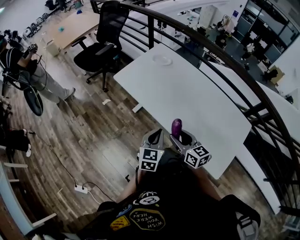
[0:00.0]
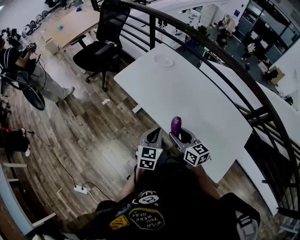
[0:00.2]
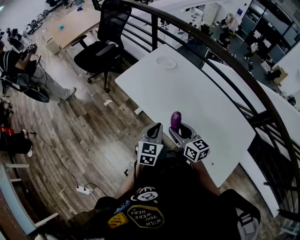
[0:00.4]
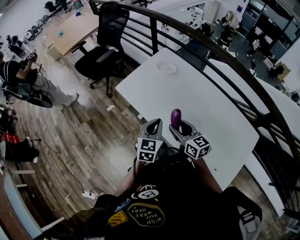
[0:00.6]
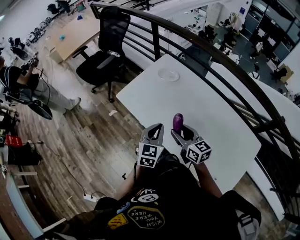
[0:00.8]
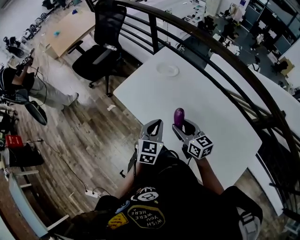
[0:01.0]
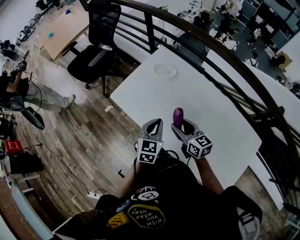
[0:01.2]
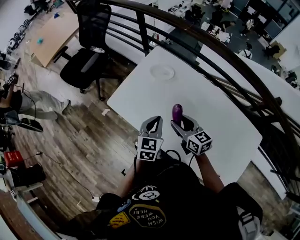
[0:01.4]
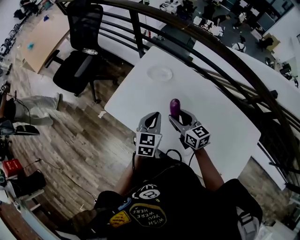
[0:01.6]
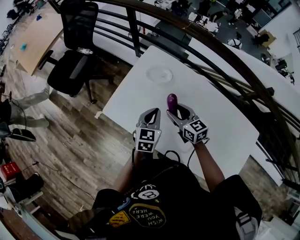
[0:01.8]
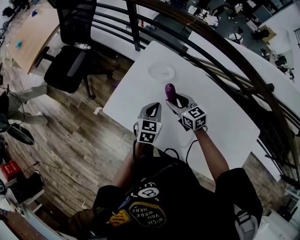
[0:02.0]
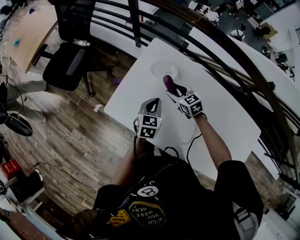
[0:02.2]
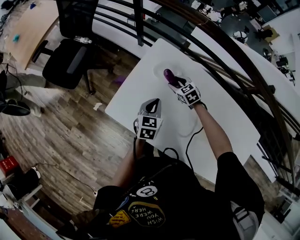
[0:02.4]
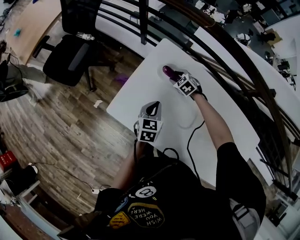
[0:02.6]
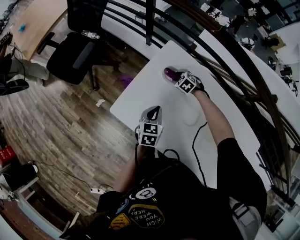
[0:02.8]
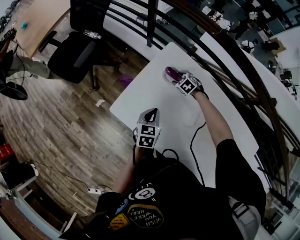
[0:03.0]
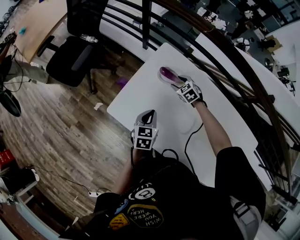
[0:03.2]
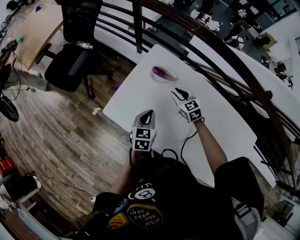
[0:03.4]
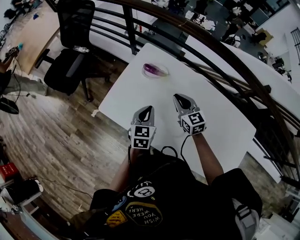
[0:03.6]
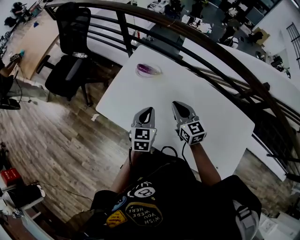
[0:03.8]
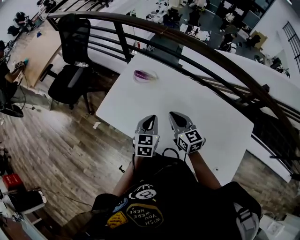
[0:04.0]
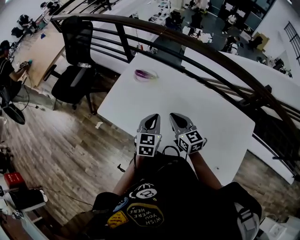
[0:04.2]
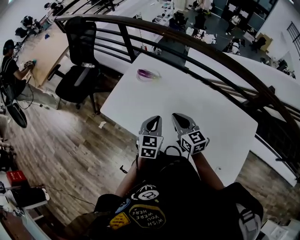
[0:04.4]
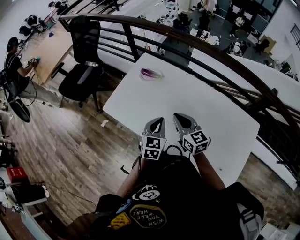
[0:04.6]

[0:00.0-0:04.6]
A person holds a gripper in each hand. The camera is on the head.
0:00.0 to 0:01.6: The grippers both shift forward by roughly 40 cm.
0:01.6 to 0:03.0: The left gripper goes roughly 15 cm downward, forward and to the left. The right gripper heads forward and downward, covering about 35 cm, and tilts its fingers approximately 40 degrees downward.
0:03.0 to 0:04.6: The right gripper travels backward and upward by some 50 cm, angles its fingers upward, by roughly 50 degrees, and closes its fingers. Meanwhile the left gripper is displaced backward, to the right and upward by some 30 cm, and turns by some 20 degrees.

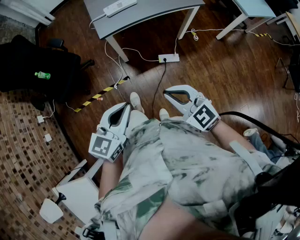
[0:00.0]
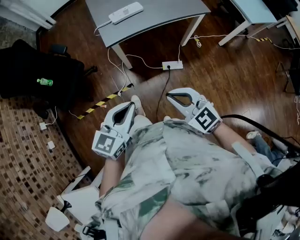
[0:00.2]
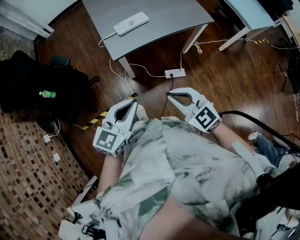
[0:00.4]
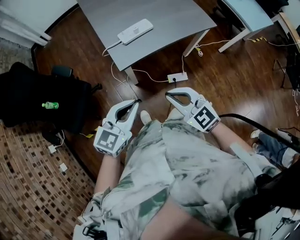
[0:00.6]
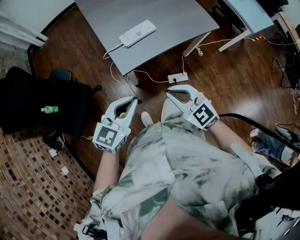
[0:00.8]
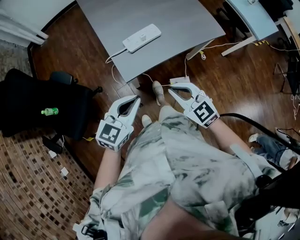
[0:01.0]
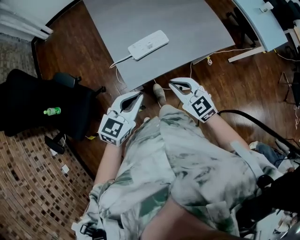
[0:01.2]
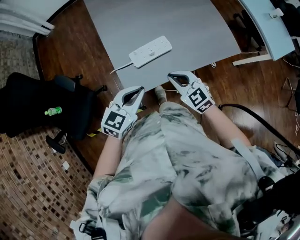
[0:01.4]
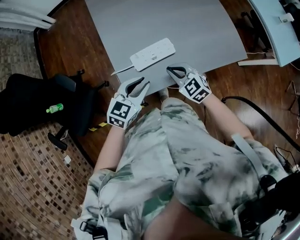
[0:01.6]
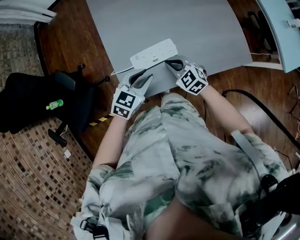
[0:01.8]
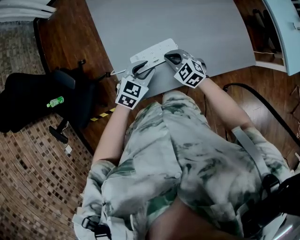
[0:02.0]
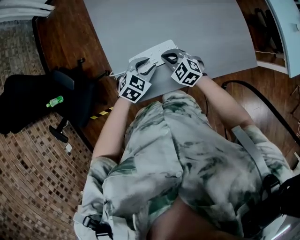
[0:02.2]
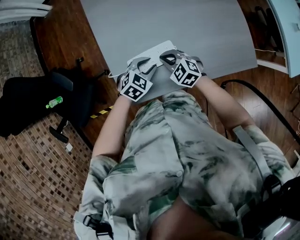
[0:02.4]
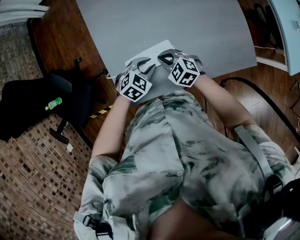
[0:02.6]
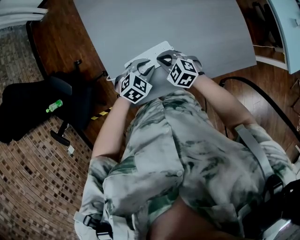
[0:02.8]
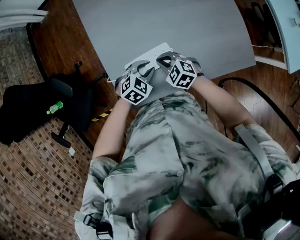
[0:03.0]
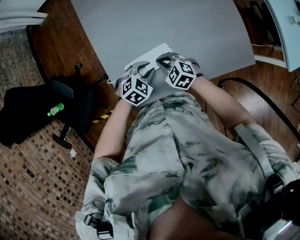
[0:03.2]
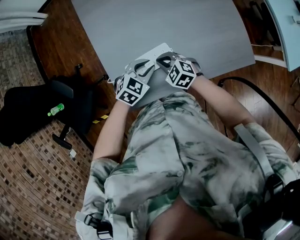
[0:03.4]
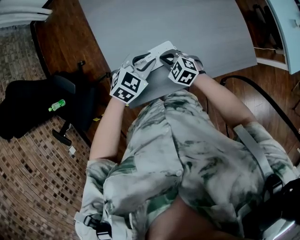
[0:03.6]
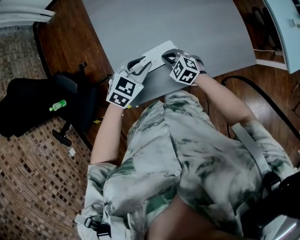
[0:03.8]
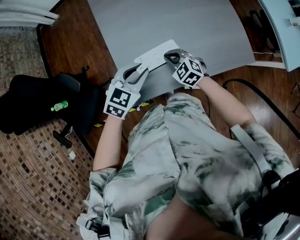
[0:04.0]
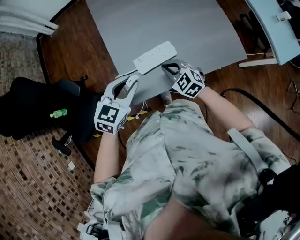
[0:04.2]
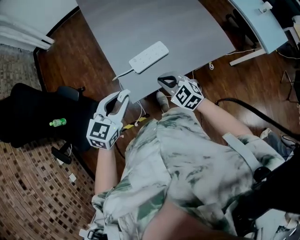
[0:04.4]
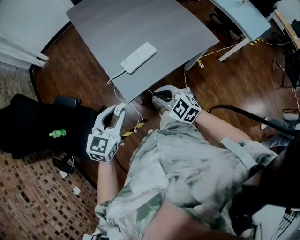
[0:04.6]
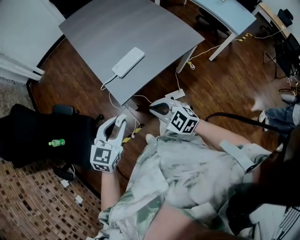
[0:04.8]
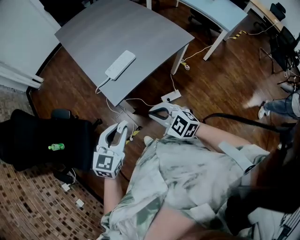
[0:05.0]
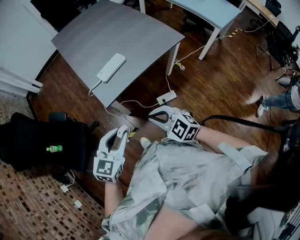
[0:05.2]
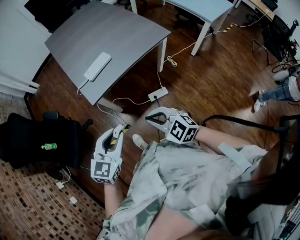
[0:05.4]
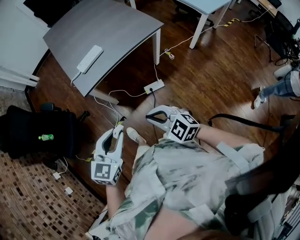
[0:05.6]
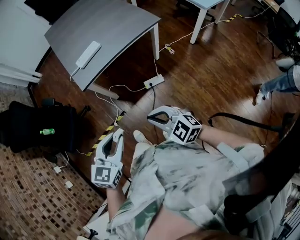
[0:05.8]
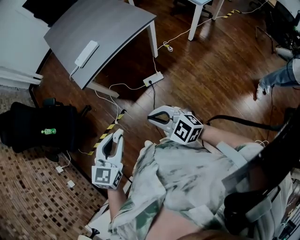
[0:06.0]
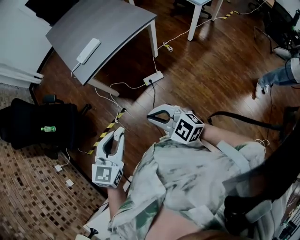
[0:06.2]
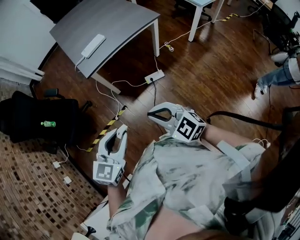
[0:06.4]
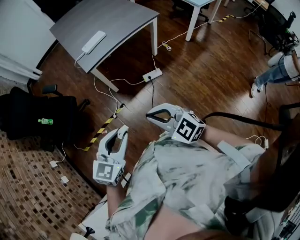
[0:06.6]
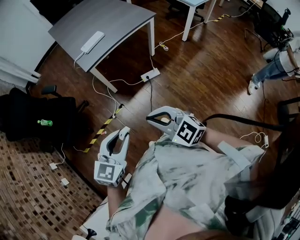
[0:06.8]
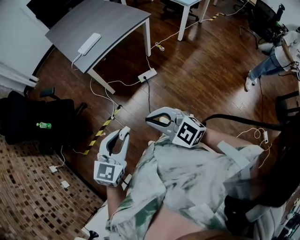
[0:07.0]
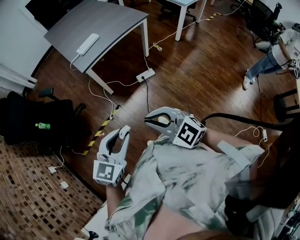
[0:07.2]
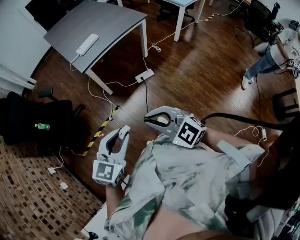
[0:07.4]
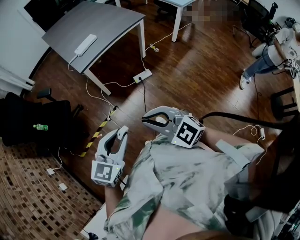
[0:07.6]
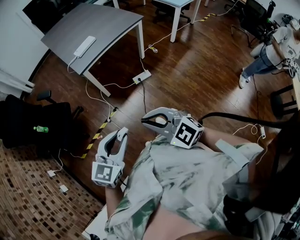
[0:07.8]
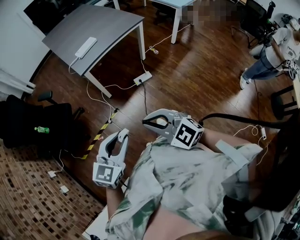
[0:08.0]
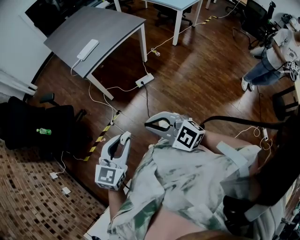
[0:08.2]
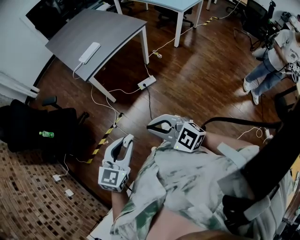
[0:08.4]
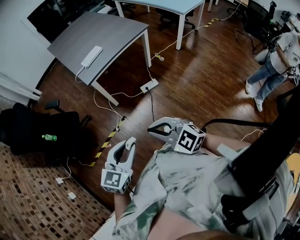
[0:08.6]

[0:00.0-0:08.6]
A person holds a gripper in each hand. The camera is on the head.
0:00.0 to 0:01.4: The pair of grippers is taken forward, about 40 cm.
0:01.4 to 0:02.8: Both grippers move downward and forward, approximately 20 cm. The left gripper changes its angle by approximately 30 degrees, and opens its fingers, while the right gripper rotates roughly 30 degrees.
0:02.8 to 0:04.4: The right gripper heads backward and upward, covering roughly 20 cm. Meanwhile the left gripper heads upward, to the left and backward, covering roughly 30 cm, and turns by some 30 degrees.
0:04.4 to 0:05.8: The two grippers travel together, backward and to the right, roughly 40 cm.
0:05.8 to 0:07.2: The right gripper moves backward, to the left and upward, roughly 20 cm; the left gripper goes approximately 20 cm backward and to the left.
0:07.2 to 0:08.6: The grippers make only small movements.

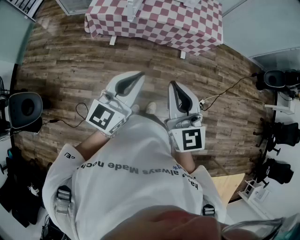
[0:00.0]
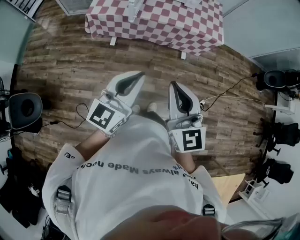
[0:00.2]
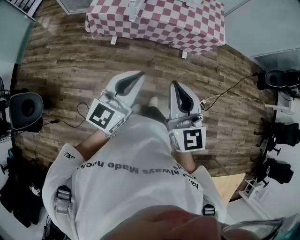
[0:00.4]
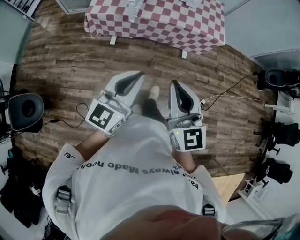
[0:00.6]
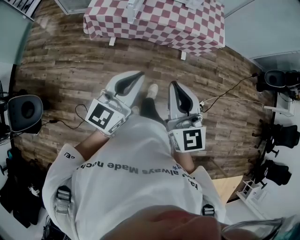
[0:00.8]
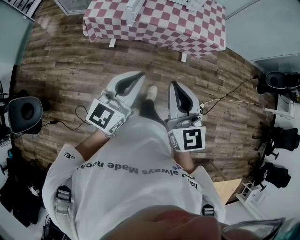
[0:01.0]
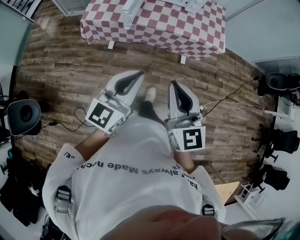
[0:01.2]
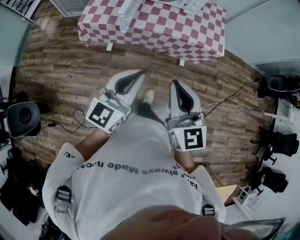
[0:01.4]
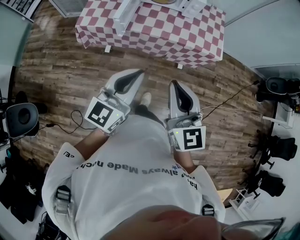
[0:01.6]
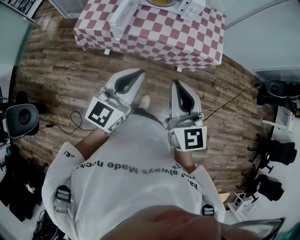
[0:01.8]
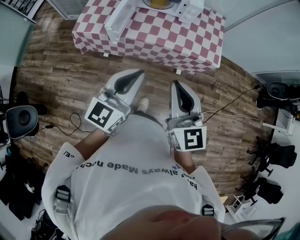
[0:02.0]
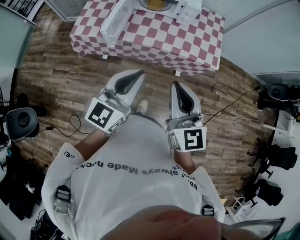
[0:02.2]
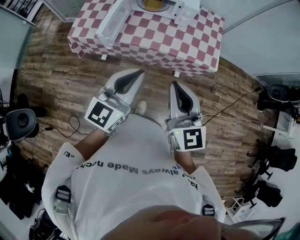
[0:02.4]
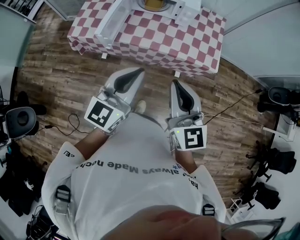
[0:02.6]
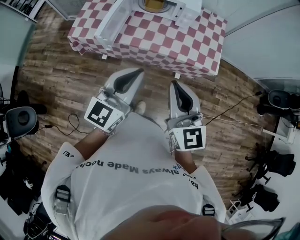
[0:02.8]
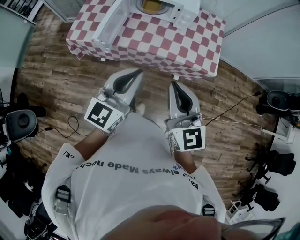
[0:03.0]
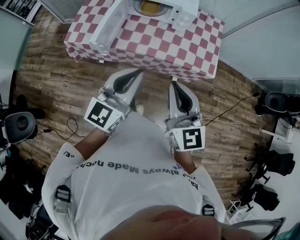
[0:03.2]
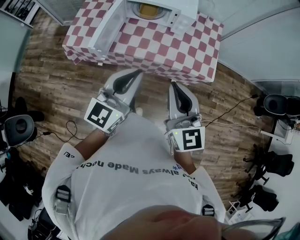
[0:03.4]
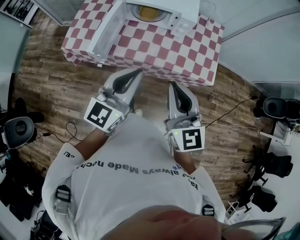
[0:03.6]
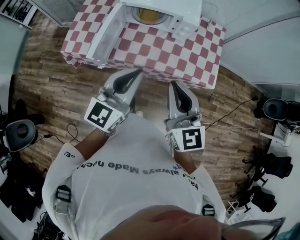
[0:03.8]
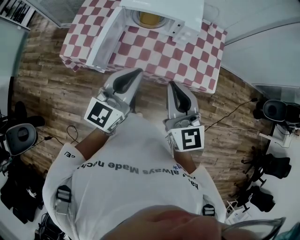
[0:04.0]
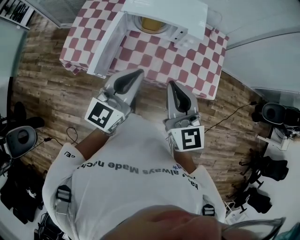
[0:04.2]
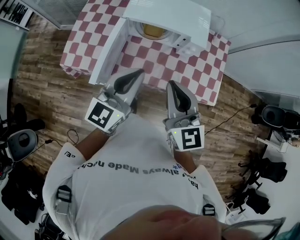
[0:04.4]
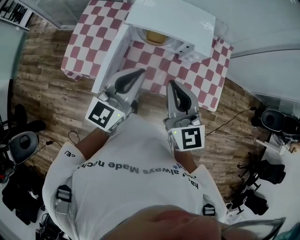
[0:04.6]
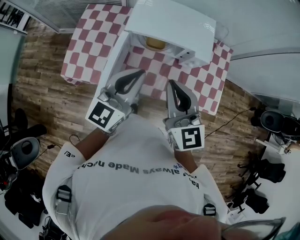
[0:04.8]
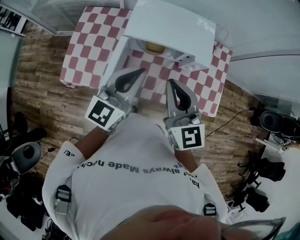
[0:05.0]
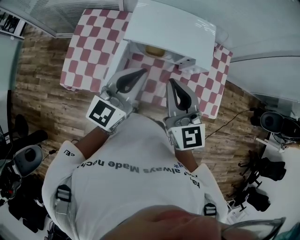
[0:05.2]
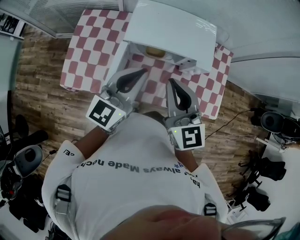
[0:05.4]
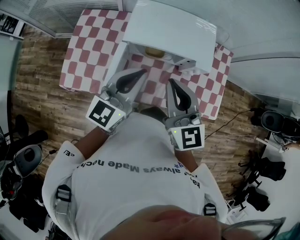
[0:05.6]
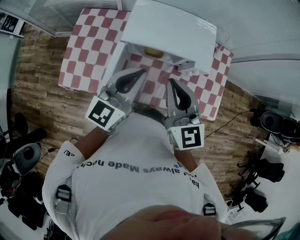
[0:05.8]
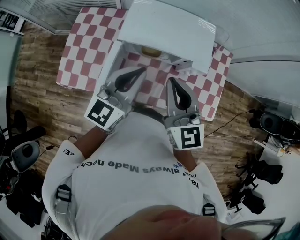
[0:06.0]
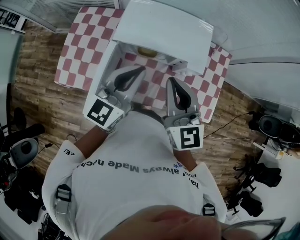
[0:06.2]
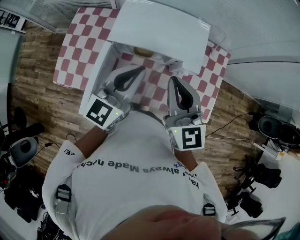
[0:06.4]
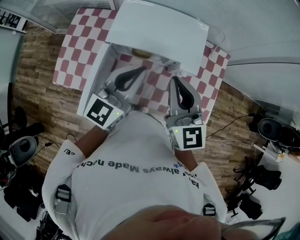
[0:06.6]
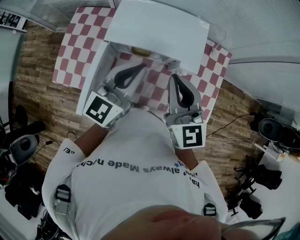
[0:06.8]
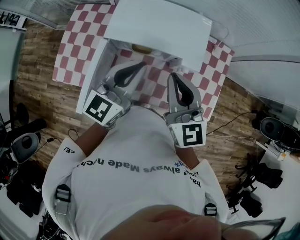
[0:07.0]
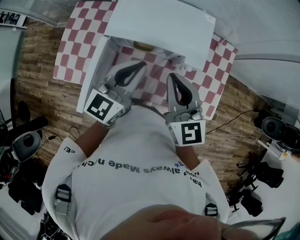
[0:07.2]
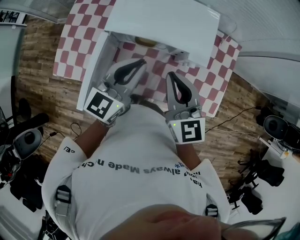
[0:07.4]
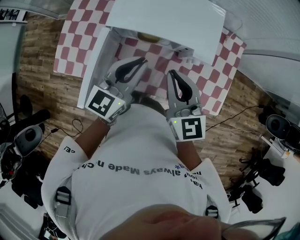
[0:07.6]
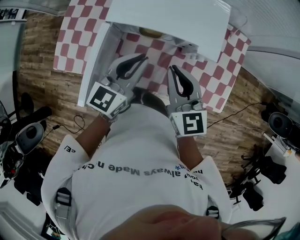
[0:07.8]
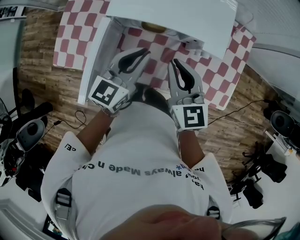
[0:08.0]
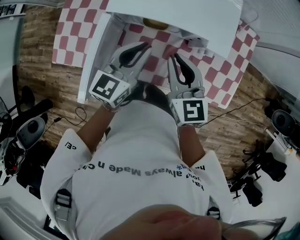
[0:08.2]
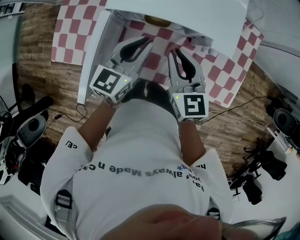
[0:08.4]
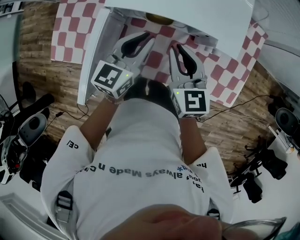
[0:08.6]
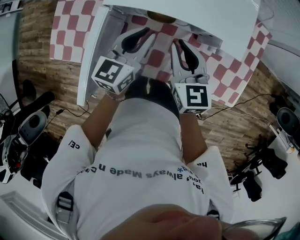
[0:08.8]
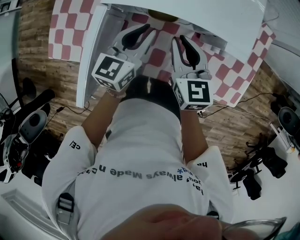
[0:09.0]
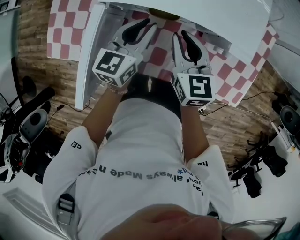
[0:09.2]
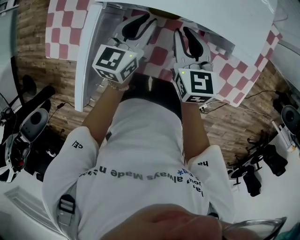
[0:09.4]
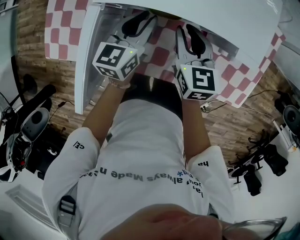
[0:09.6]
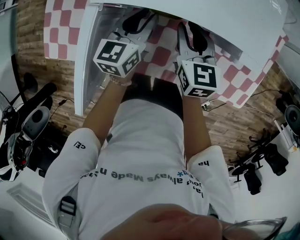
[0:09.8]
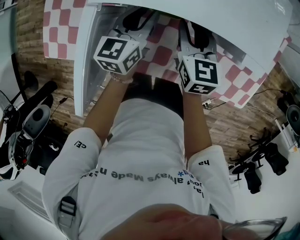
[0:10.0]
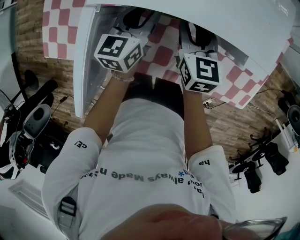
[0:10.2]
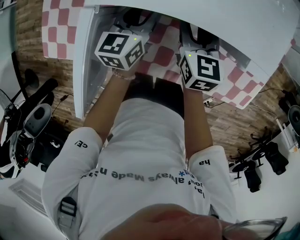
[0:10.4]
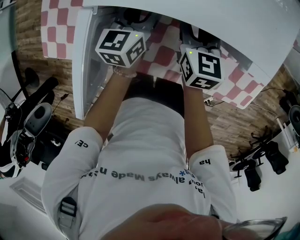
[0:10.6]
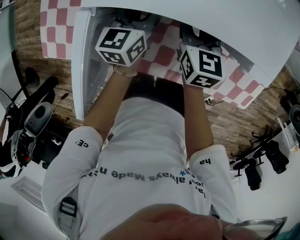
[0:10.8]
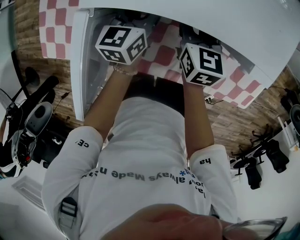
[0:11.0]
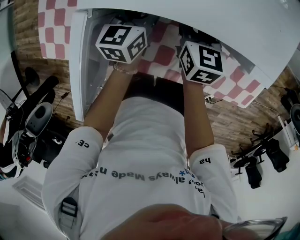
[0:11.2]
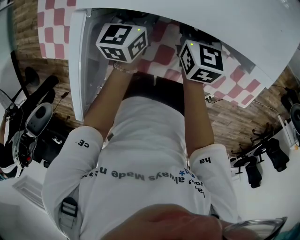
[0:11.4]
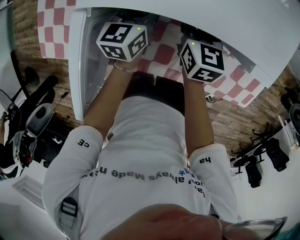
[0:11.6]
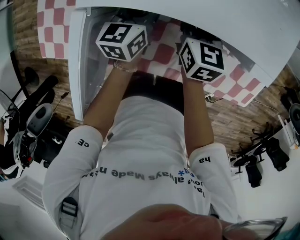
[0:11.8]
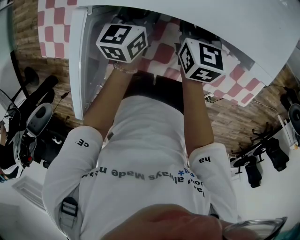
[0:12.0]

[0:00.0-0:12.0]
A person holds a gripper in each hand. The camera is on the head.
0:00.0 to 0:01.6: Both grippers travel together forward, some 20 cm.
0:01.6 to 0:03.0: Both grippers move forward and to the right, about 20 cm.
0:03.0 to 0:04.4: Both grippers move forward, some 25 cm.
0:04.4 to 0:06.0: Both grippers travel together forward, some 15 cm.
0:06.0 to 0:07.6: Both grippers travel together downward and to the right, about 10 cm.
0:07.6 to 0:09.0: The two grippers go about 20 cm downward and forward.
0:09.0 to 0:10.4: Both grippers travel together downward and forward, roughly 15 cm.
0:10.4 to 0:12.0: The grippers make only small movements.
